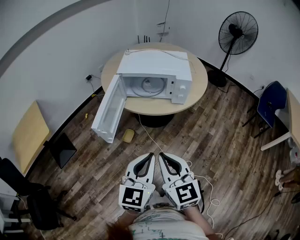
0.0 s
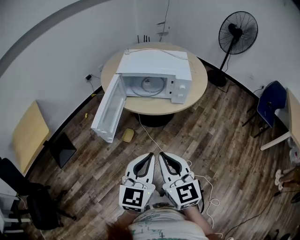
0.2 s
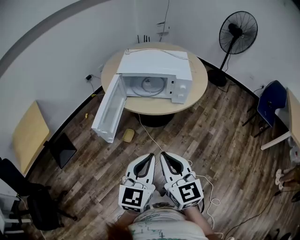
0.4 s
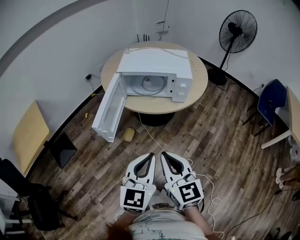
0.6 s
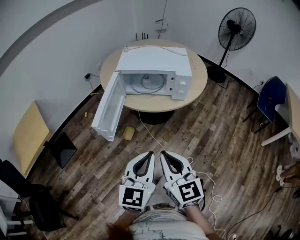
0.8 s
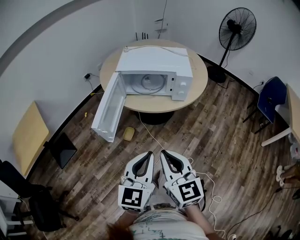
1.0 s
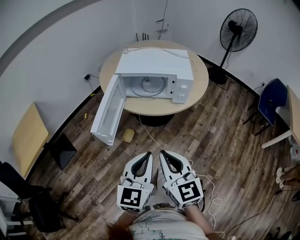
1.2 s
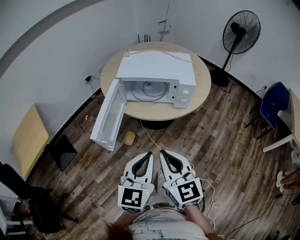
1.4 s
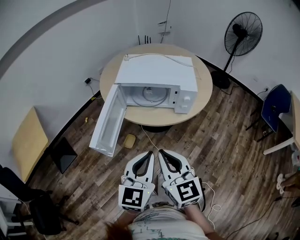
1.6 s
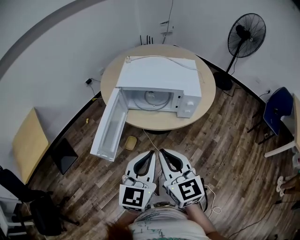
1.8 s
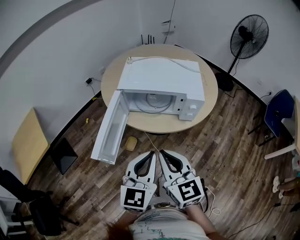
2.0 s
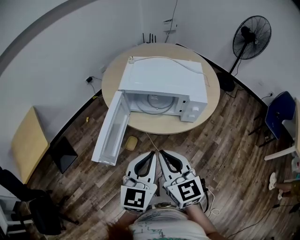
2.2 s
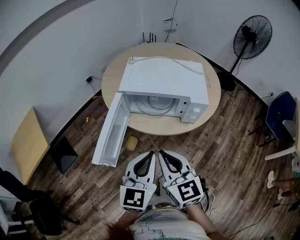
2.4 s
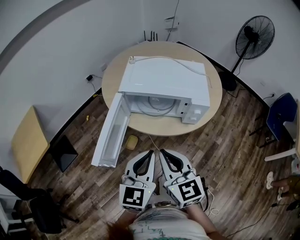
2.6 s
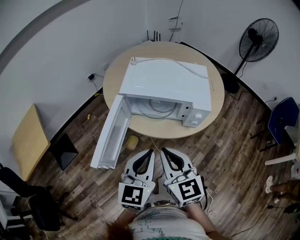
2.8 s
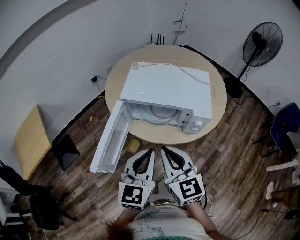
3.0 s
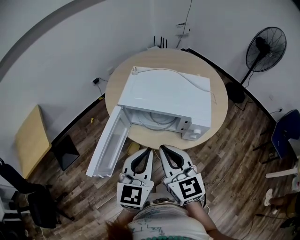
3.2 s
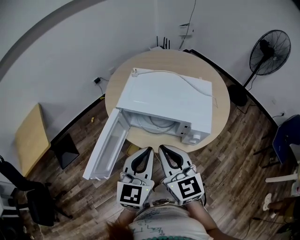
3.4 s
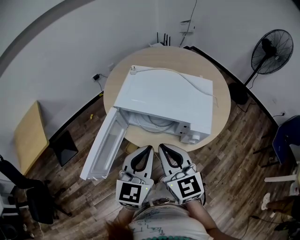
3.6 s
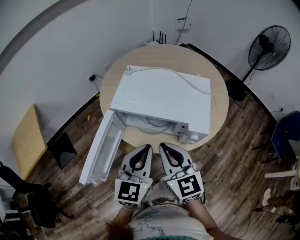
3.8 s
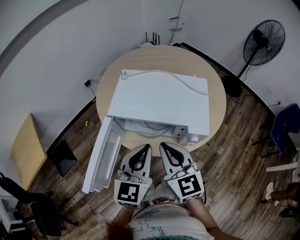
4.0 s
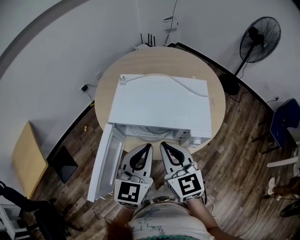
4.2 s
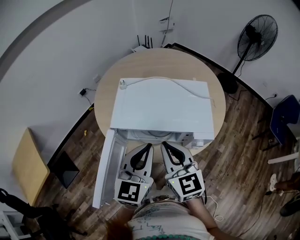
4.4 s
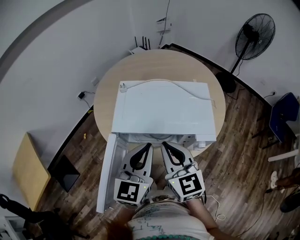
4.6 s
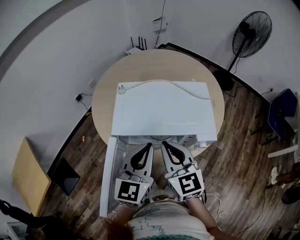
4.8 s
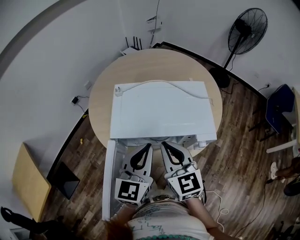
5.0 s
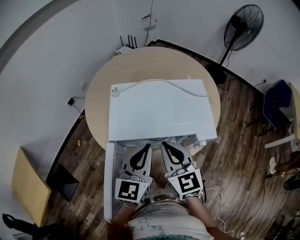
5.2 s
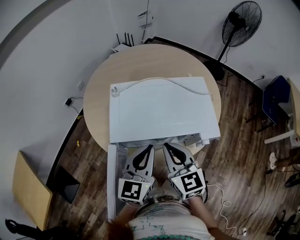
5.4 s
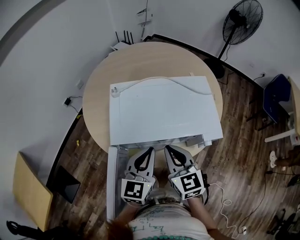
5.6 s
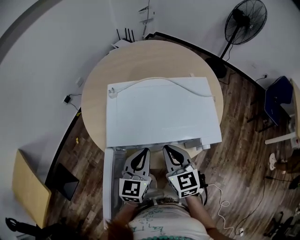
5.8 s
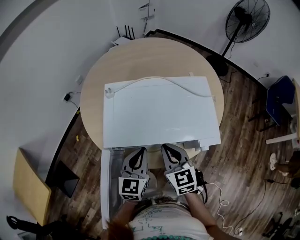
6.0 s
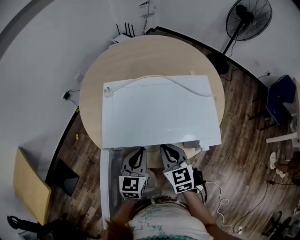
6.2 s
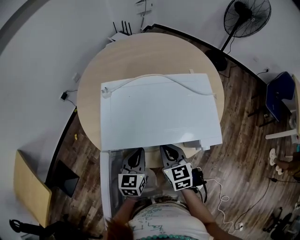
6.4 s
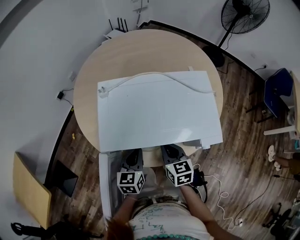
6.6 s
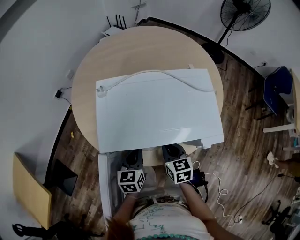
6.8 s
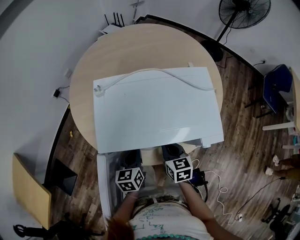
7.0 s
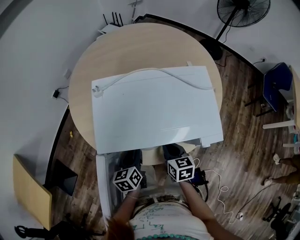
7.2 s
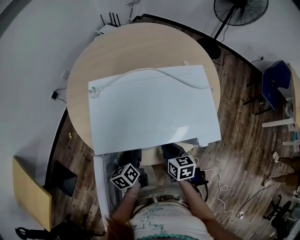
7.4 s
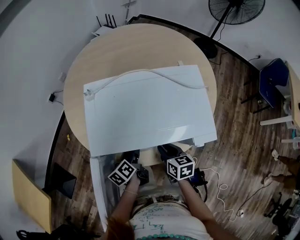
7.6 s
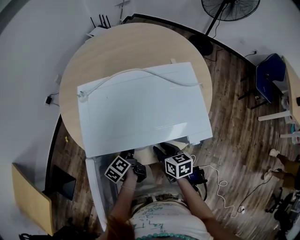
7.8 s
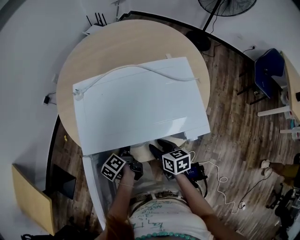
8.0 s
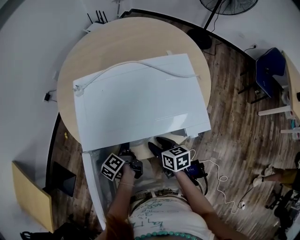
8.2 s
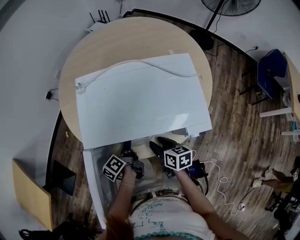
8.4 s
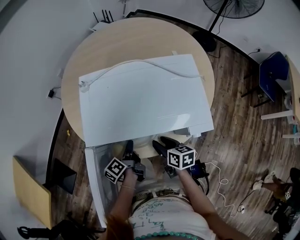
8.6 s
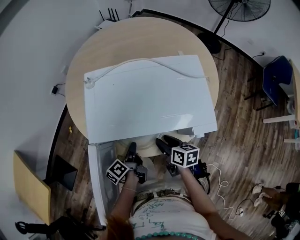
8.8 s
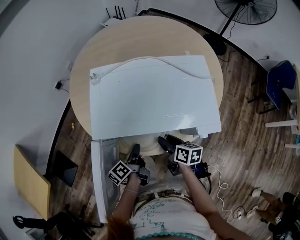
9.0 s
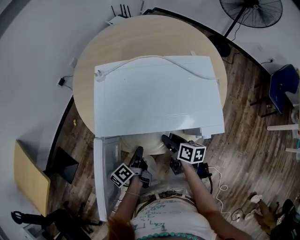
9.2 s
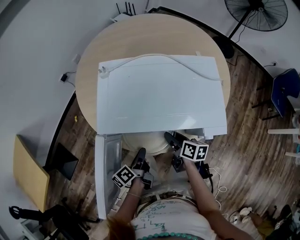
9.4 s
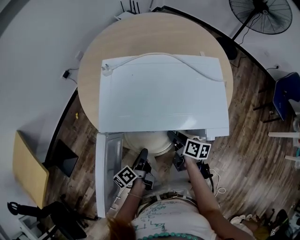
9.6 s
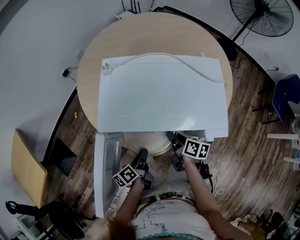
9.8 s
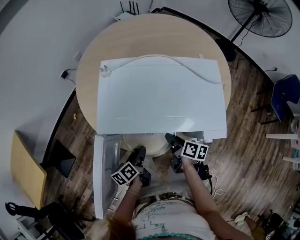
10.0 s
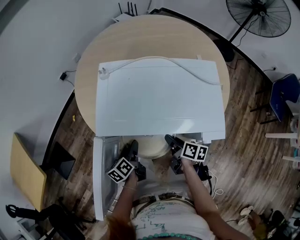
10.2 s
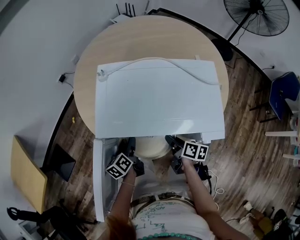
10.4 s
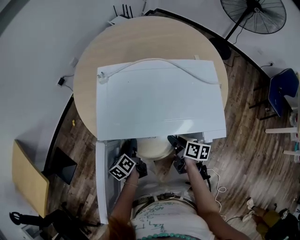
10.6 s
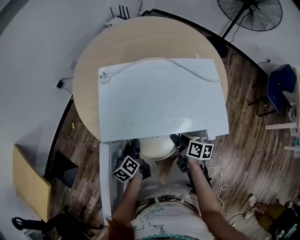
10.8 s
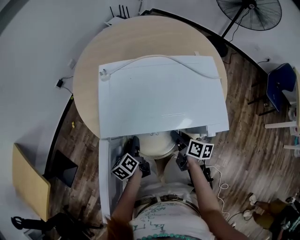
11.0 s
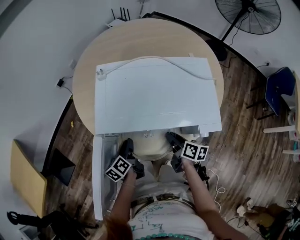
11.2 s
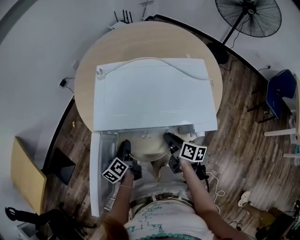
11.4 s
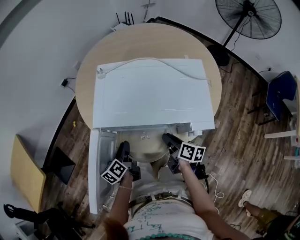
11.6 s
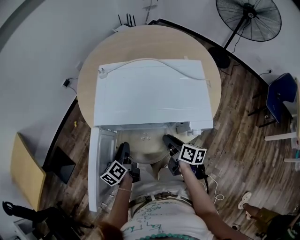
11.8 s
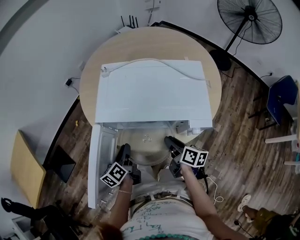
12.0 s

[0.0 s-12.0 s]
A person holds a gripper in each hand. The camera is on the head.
0.0 to 1.6 s: Both grippers move forward, about 10 cm.
1.6 to 3.0 s: Both grippers travel together forward, roughly 15 cm.
3.0 to 4.4 s: Both grippers move forward, approximately 15 cm.
4.4 to 6.0 s: Both grippers move downward and forward, roughly 15 cm.
6.0 to 7.6 s: The grippers both shift downward by about 15 cm. The right gripper changes its angle by roughly 30 degrees. The left gripper twists about 50 degrees counterclockwise, seen from behind, and opens its fingers.
7.6 to 9.0 s: The left gripper heads backward, covering some 5 cm, and closes, while the right gripper opens up.
9.0 to 10.4 s: The left gripper moves some 5 cm, rotates roughly 30 degrees, and opens up.
10.4 to 12.0 s: The right gripper heads upward, covering roughly 5 cm, while the left gripper shifts some 10 cm backward and upward, and closes up.

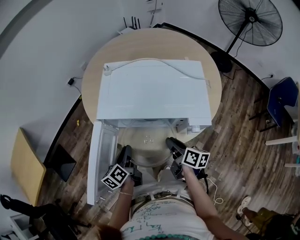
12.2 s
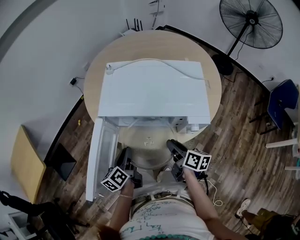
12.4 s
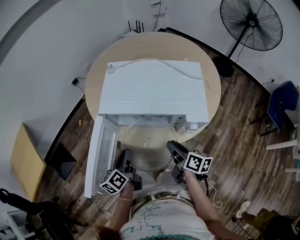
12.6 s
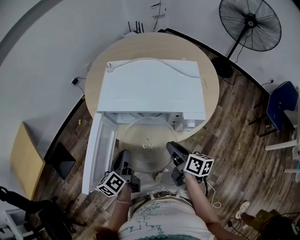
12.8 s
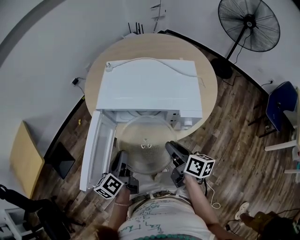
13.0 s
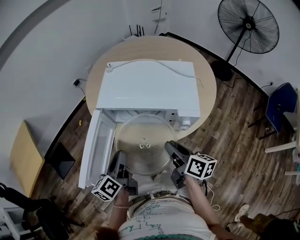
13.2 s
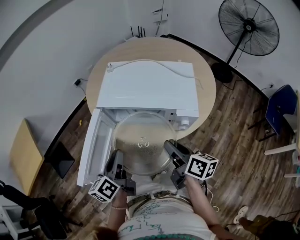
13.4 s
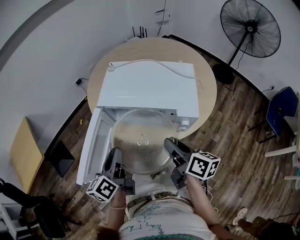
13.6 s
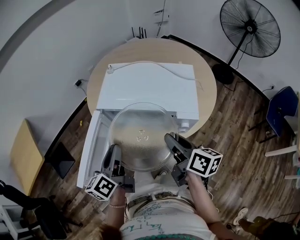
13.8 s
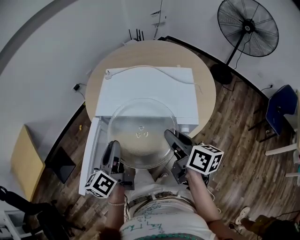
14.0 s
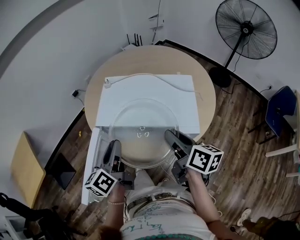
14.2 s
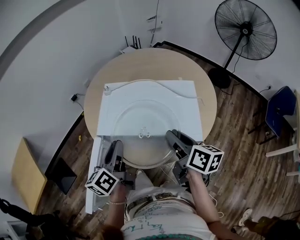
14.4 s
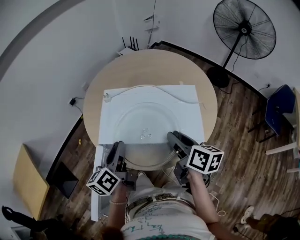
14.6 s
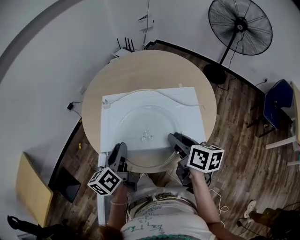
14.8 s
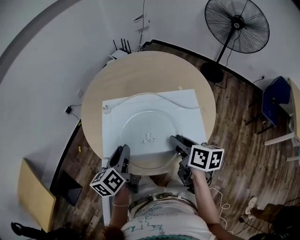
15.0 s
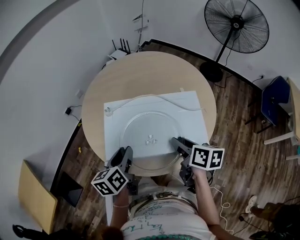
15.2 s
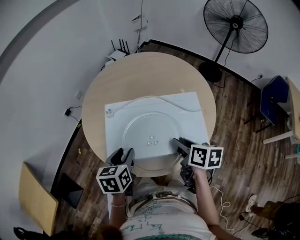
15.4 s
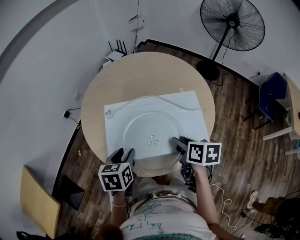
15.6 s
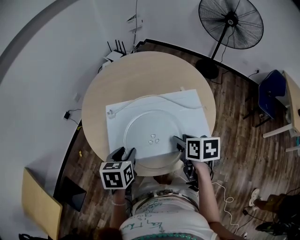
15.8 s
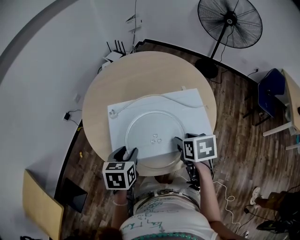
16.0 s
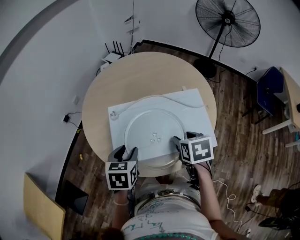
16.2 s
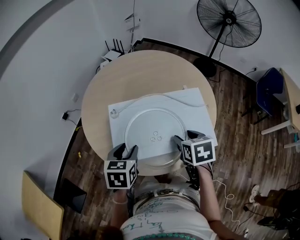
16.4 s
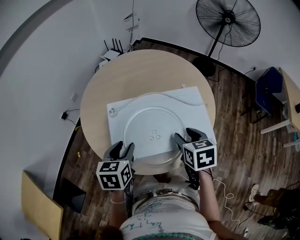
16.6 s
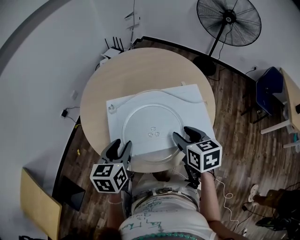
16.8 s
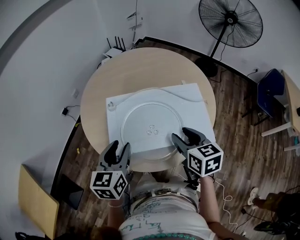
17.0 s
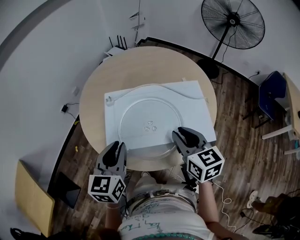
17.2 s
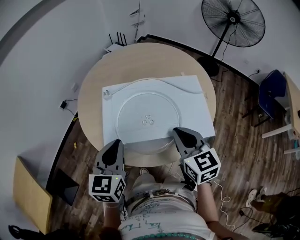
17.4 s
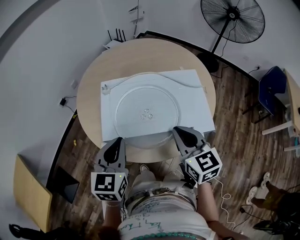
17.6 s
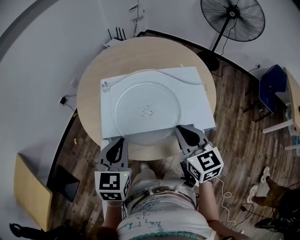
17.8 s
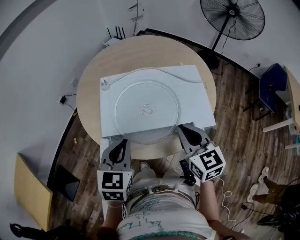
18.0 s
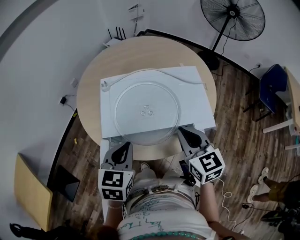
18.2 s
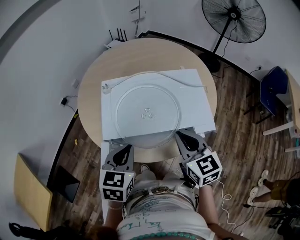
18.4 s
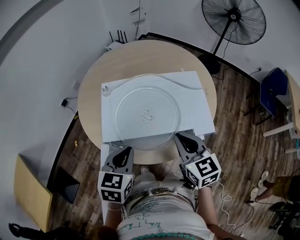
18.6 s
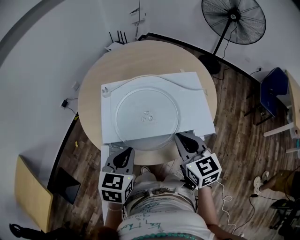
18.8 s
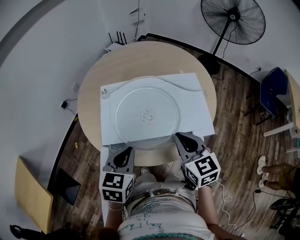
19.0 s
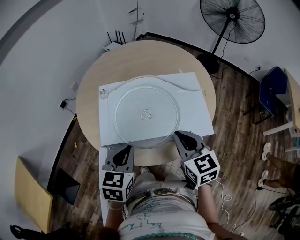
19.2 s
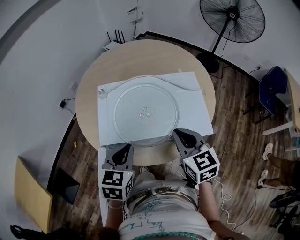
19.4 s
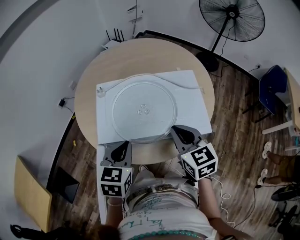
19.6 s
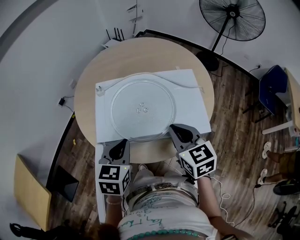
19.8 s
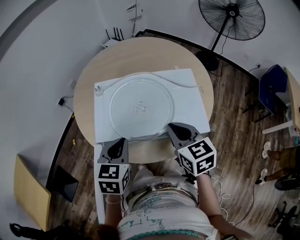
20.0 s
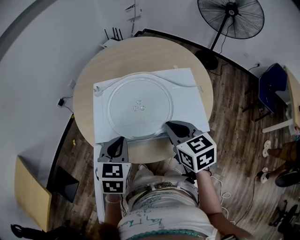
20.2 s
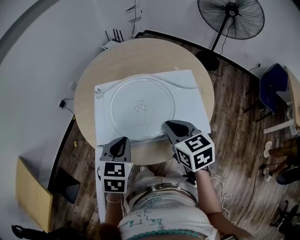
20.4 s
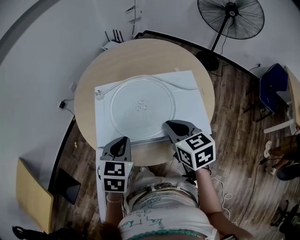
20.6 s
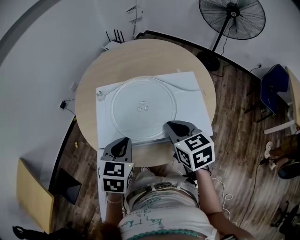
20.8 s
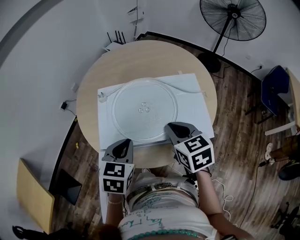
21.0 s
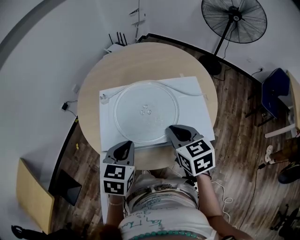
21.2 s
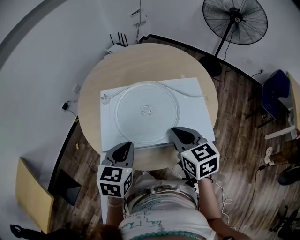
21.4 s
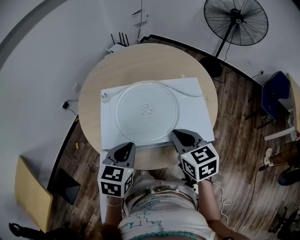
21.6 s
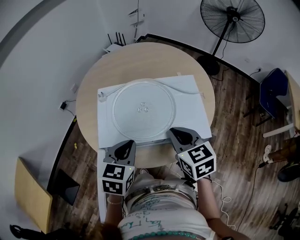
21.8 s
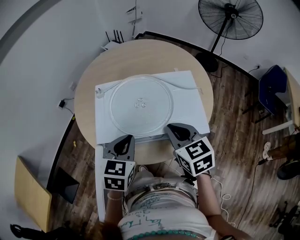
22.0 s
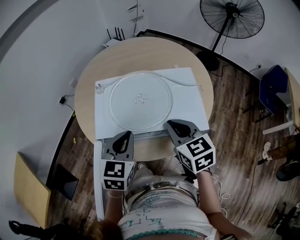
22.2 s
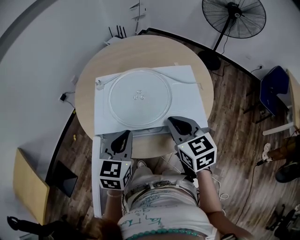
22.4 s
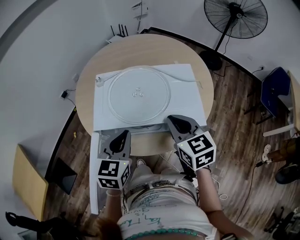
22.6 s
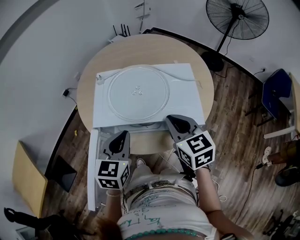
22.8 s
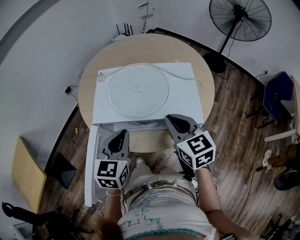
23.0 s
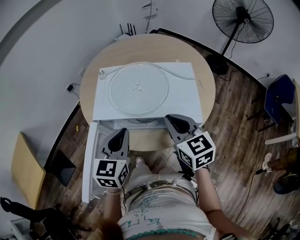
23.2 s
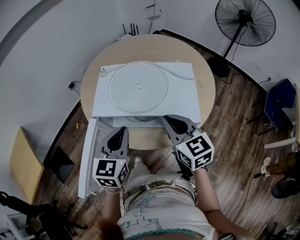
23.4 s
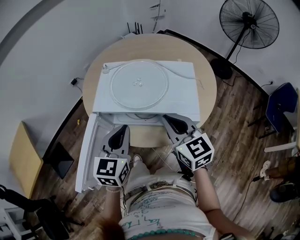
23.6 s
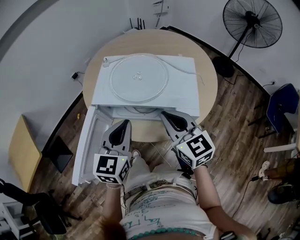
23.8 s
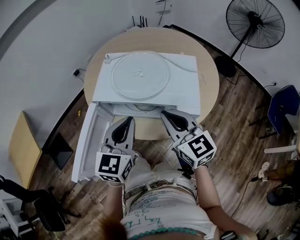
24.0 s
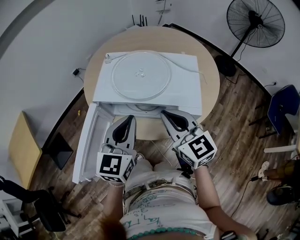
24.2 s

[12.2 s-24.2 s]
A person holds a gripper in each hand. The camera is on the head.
12.2 to 13.8 s: The grippers both shift upward by some 15 cm.
13.8 to 15.2 s: Both grippers move forward, about 20 cm. The left gripper swivels roughly 30 degrees; the right gripper changes its angle by approximately 20 degrees.
15.2 to 16.6 s: The right gripper rotates some 30 degrees; the left gripper swivels roughly 30 degrees.
16.6 to 18.2 s: The two grippers go some 10 cm backward. The right gripper turns by about 30 degrees, and closes up, while the left gripper closes its fingers.
18.2 to 19.8 s: There are only small adjustments of the grippers.
19.8 to 21.2 s: The grippers move only a little.
21.2 to 22.6 s: The right gripper shifts by some 5 cm.
22.6 to 24.2 s: The right gripper goes approximately 5 cm backward, and swivels approximately 30 degrees, while the left gripper travels backward and upward by approximately 10 cm.
